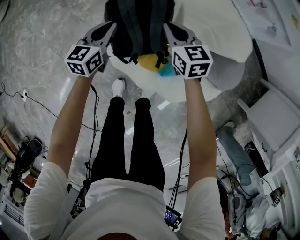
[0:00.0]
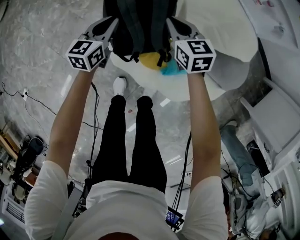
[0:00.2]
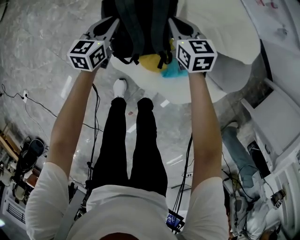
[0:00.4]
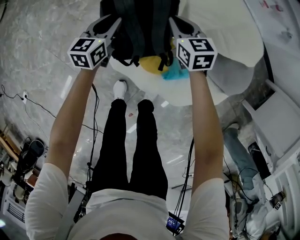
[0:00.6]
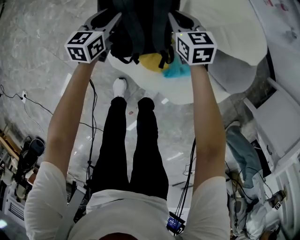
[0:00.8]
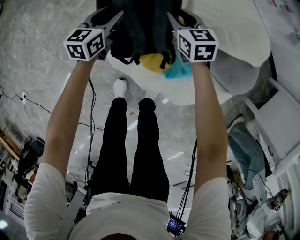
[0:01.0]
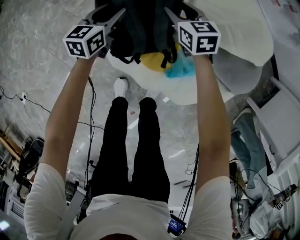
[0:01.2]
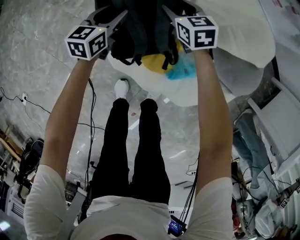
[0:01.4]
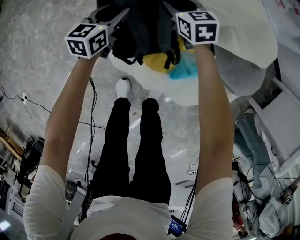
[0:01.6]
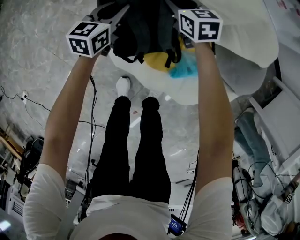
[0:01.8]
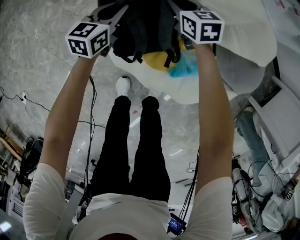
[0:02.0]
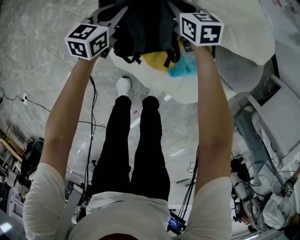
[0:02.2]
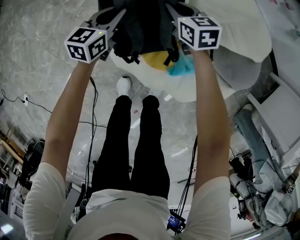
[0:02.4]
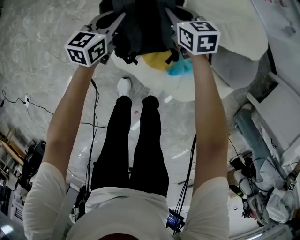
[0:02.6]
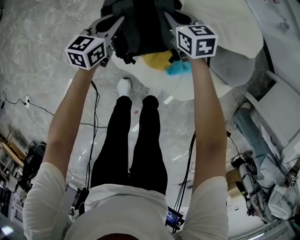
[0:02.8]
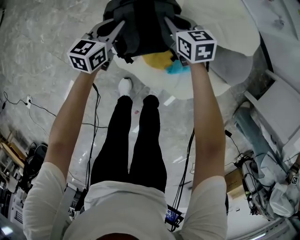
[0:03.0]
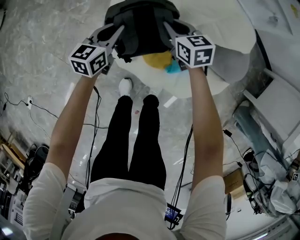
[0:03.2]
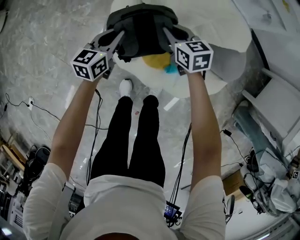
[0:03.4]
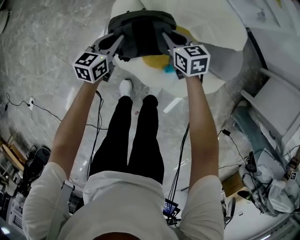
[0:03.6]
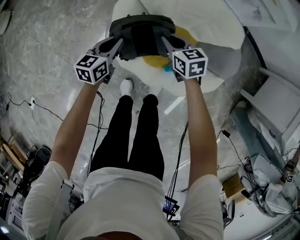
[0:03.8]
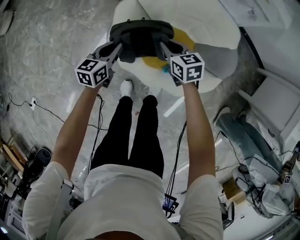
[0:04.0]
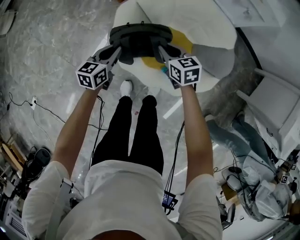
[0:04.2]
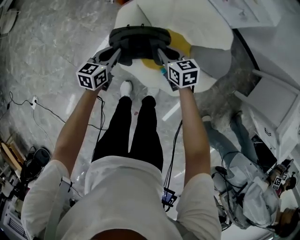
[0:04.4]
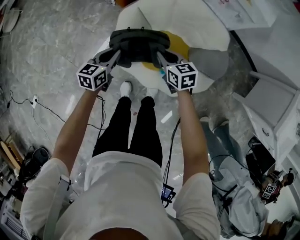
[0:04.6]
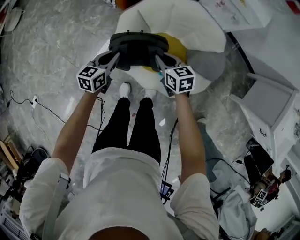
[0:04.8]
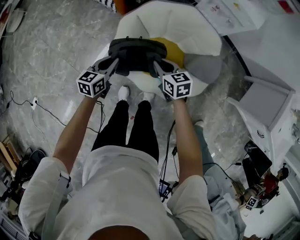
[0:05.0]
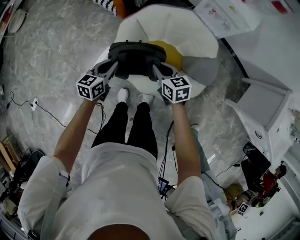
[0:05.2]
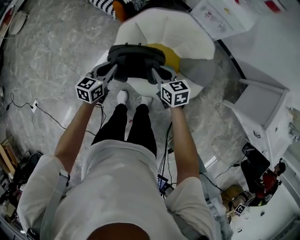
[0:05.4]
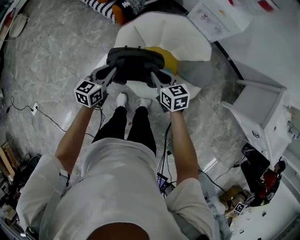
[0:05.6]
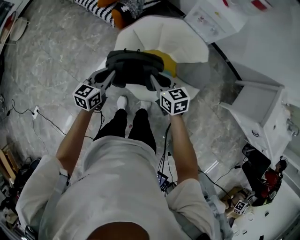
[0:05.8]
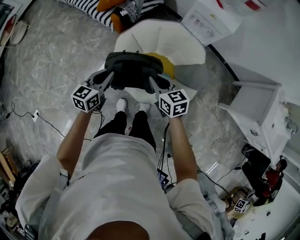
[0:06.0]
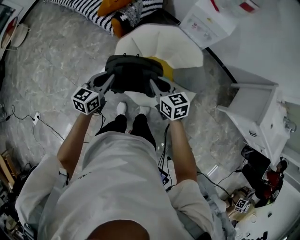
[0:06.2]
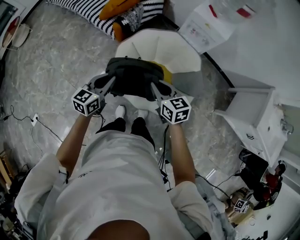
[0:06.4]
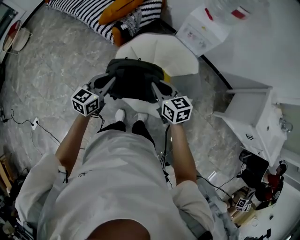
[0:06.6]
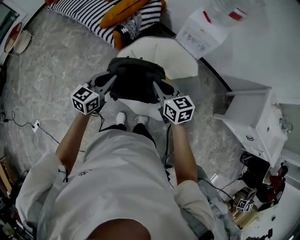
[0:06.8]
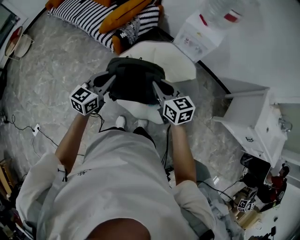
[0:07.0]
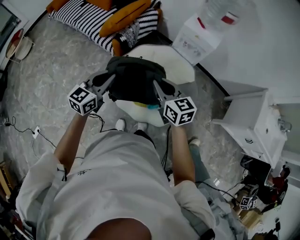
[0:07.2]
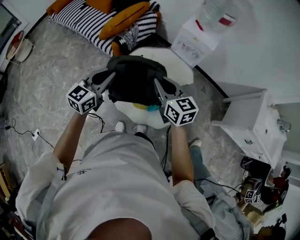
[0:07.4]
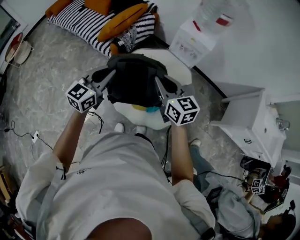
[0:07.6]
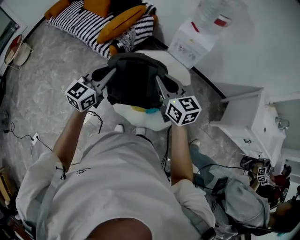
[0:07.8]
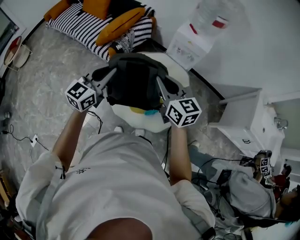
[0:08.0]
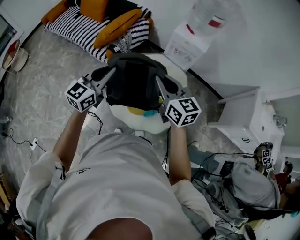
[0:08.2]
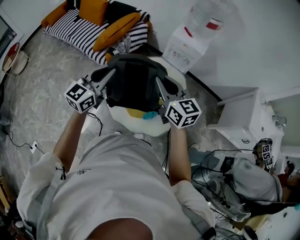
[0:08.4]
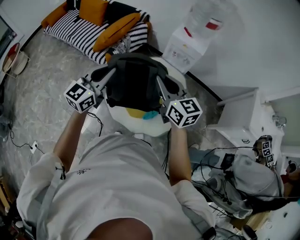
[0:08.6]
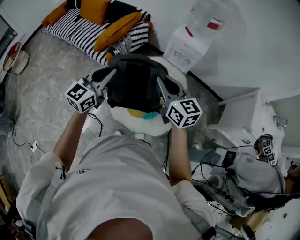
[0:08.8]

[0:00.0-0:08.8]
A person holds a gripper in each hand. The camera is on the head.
0:00.0 to 0:01.4: The grippers both shift downward and forward by about 15 cm. The right gripper opens up. The left gripper opens its fingers.
0:01.4 to 0:03.0: Both grippers travel together upward and backward, approximately 10 cm. The right gripper closes up, while the left gripper closes.
0:03.0 to 0:04.4: Both grippers move upward and backward, approximately 20 cm.
0:04.4 to 0:05.8: The right gripper heads upward and backward, covering some 20 cm; the left gripper shifts roughly 20 cm upward.
0:05.8 to 0:07.4: The two grippers go some 20 cm upward. The left gripper turns by some 20 degrees.
0:07.4 to 0:08.8: Both grippers move upward, roughly 5 cm.

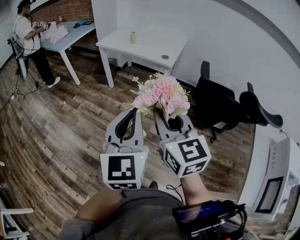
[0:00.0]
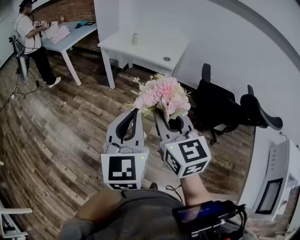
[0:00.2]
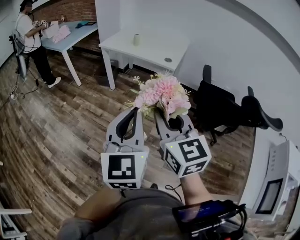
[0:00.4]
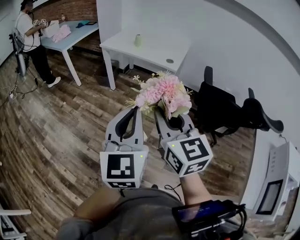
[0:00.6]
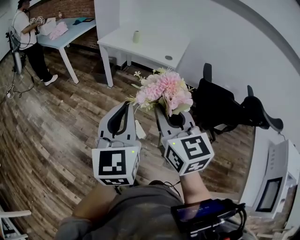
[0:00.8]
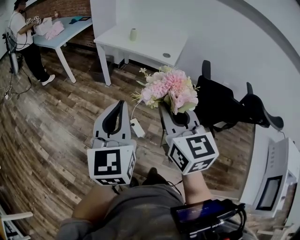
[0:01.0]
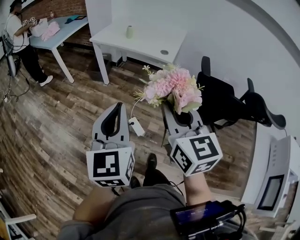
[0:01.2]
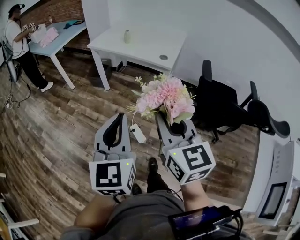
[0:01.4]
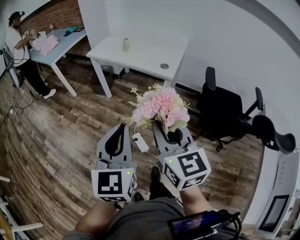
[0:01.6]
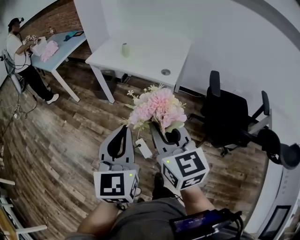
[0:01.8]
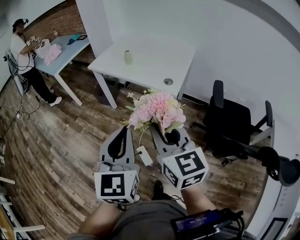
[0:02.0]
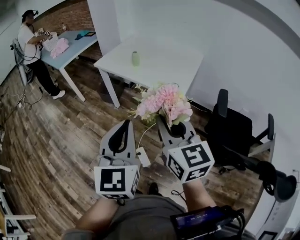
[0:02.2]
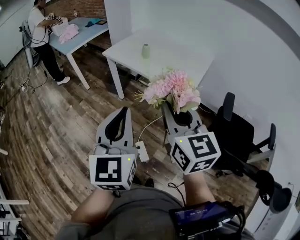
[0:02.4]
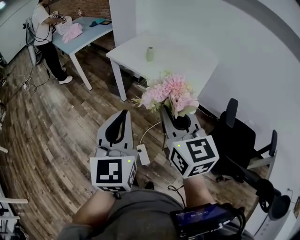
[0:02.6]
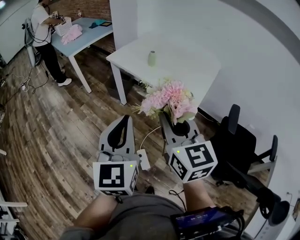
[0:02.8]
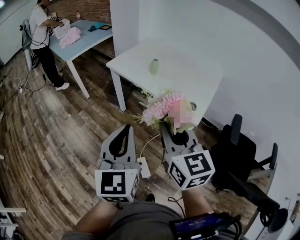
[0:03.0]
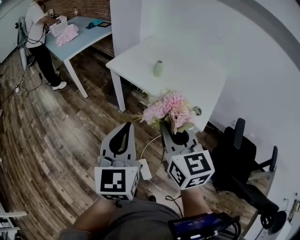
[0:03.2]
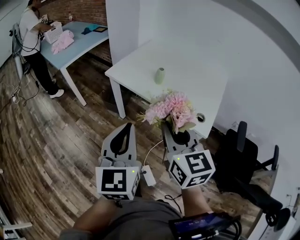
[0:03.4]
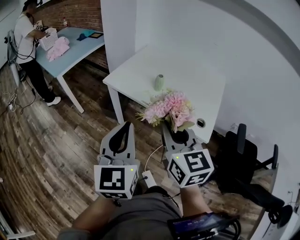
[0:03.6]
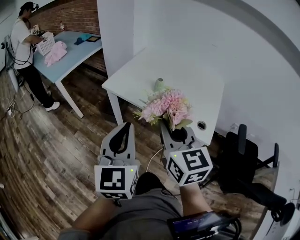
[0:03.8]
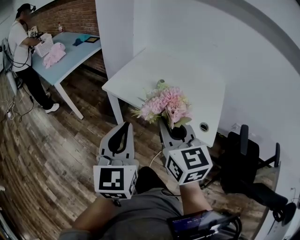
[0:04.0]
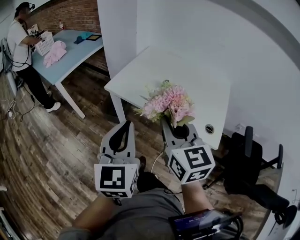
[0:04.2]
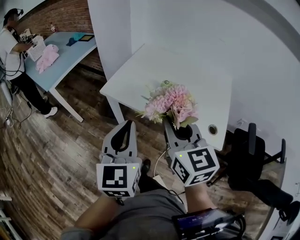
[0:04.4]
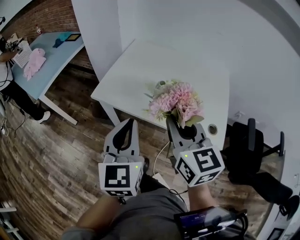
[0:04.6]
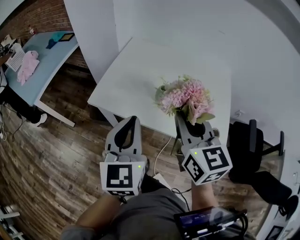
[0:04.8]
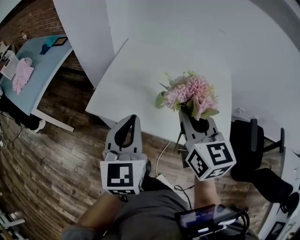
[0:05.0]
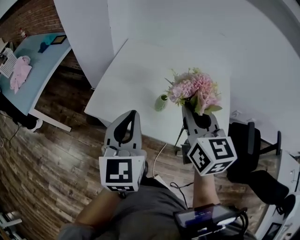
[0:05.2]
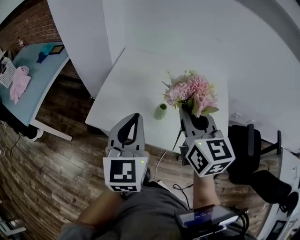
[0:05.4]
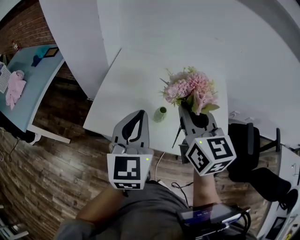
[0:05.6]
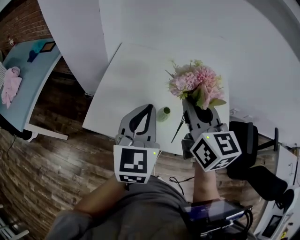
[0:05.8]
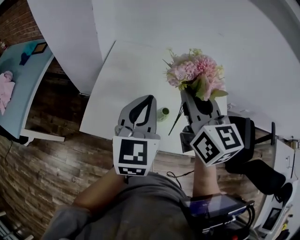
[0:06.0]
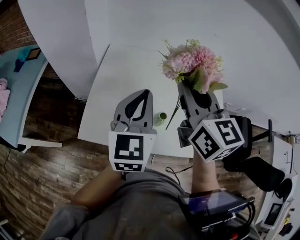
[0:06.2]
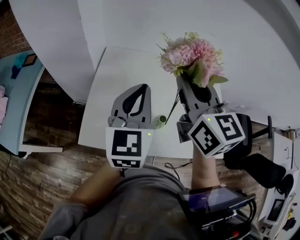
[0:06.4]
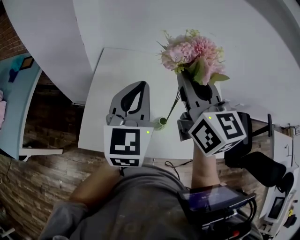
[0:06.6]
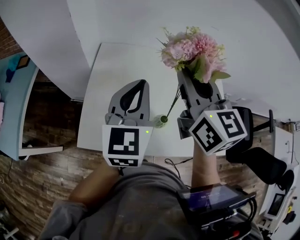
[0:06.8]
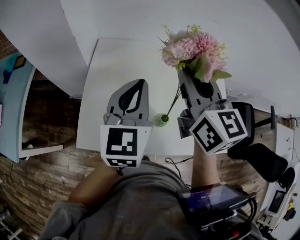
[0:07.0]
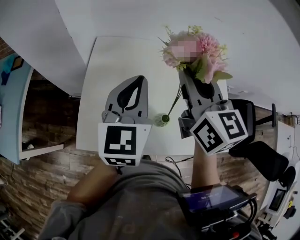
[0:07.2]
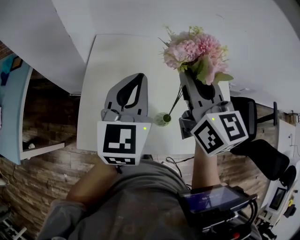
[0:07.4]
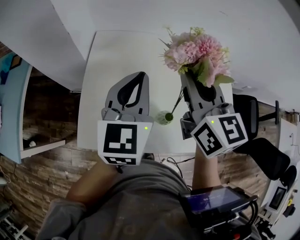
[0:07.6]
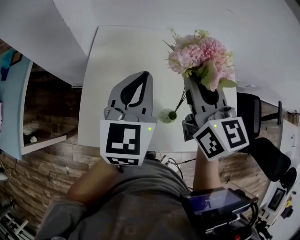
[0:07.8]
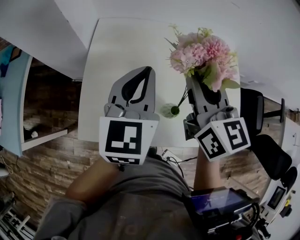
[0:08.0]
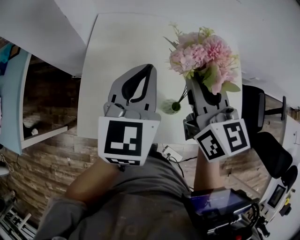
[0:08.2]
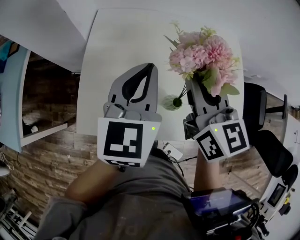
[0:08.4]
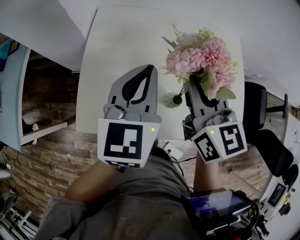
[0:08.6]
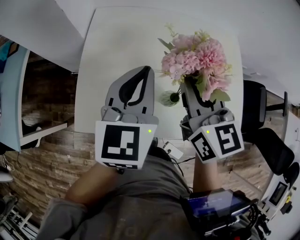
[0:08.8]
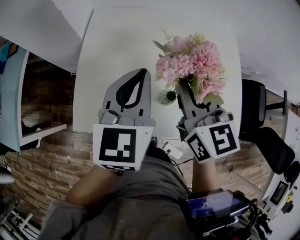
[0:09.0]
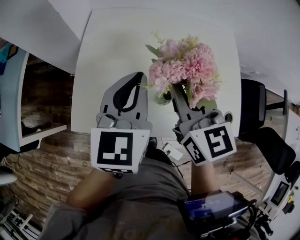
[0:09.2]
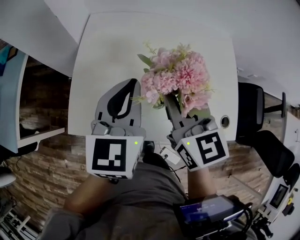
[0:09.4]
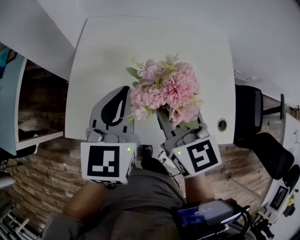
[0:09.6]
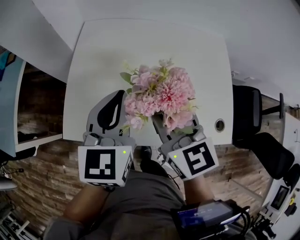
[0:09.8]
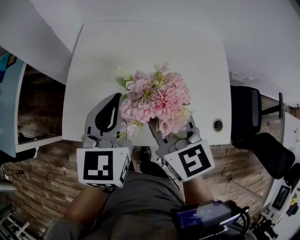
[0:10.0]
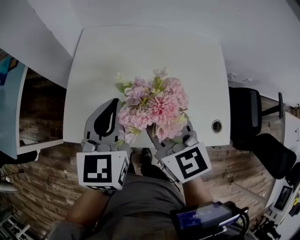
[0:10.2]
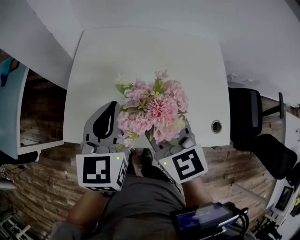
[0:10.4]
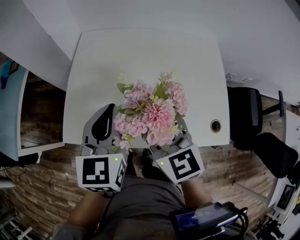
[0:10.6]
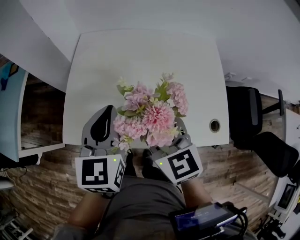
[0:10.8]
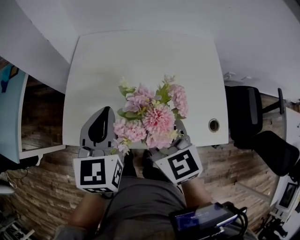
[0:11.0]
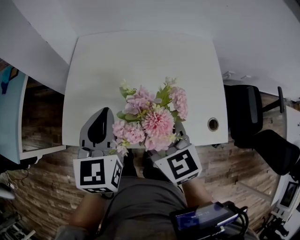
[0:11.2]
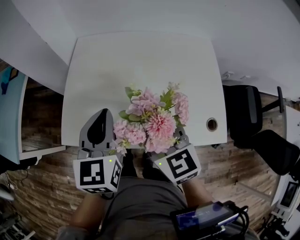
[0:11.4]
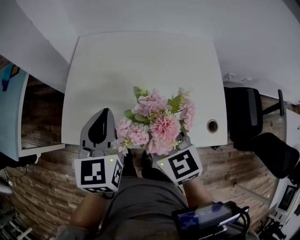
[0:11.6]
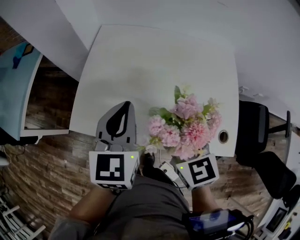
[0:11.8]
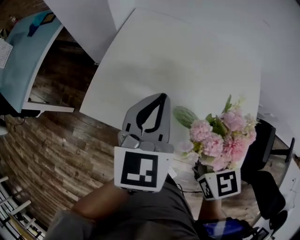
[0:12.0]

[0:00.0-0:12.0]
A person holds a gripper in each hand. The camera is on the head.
0:00.0 to 0:01.6: The left gripper goes roughly 15 cm forward and downward. Meanwhile the right gripper travels forward by roughly 15 cm.
0:01.6 to 0:03.0: Both grippers move forward, roughly 25 cm.
0:03.0 to 0:04.4: The grippers both shift forward by roughly 25 cm.
0:04.4 to 0:06.0: Both grippers travel together forward, some 30 cm. The left gripper turns by roughly 20 degrees.
0:07.6 to 0:09.0: The right gripper shifts by about 5 cm.
0:09.0 to 0:10.4: The left gripper ends up approximately 5 cm from where it was. Meanwhile the right gripper shifts some 5 cm backward, and opens.
0:10.4 to 0:12.0: The right gripper ends up some 5 cm from where it was.

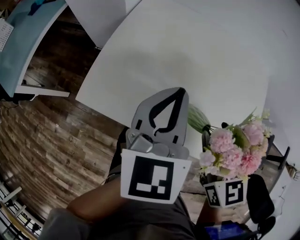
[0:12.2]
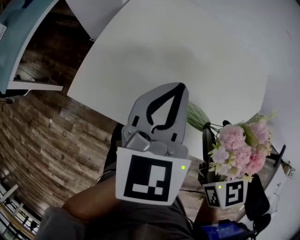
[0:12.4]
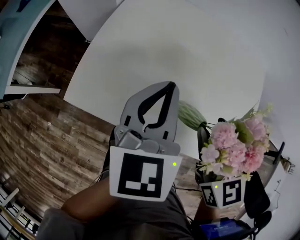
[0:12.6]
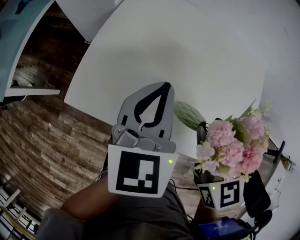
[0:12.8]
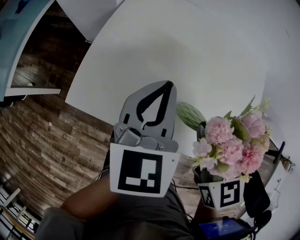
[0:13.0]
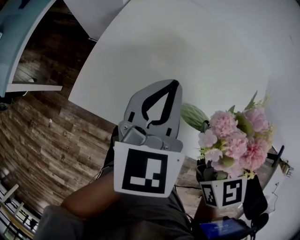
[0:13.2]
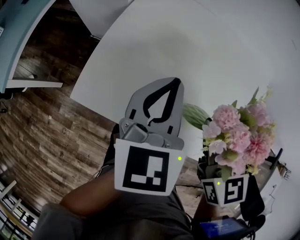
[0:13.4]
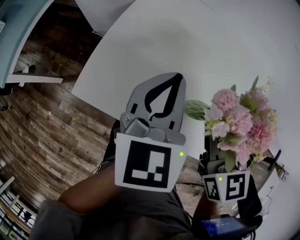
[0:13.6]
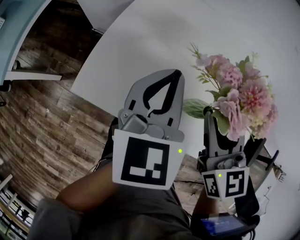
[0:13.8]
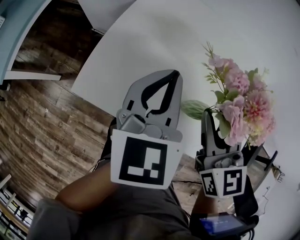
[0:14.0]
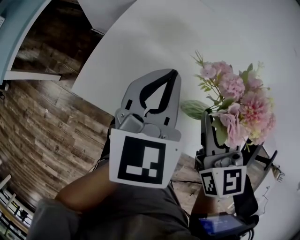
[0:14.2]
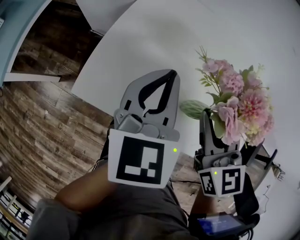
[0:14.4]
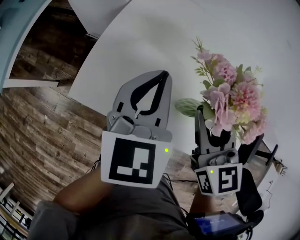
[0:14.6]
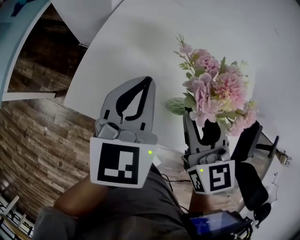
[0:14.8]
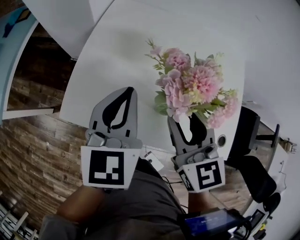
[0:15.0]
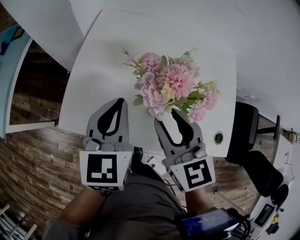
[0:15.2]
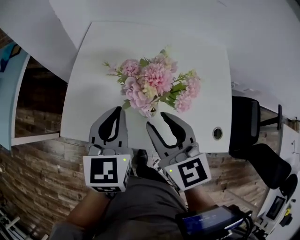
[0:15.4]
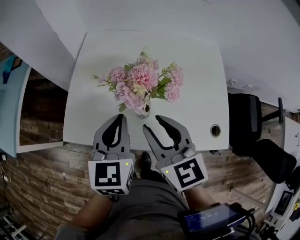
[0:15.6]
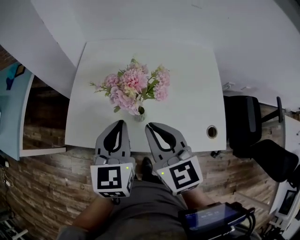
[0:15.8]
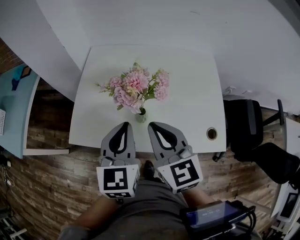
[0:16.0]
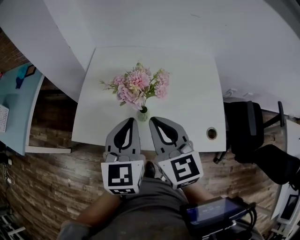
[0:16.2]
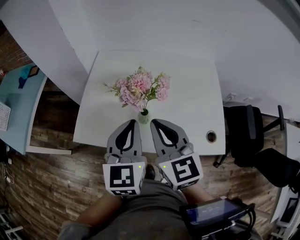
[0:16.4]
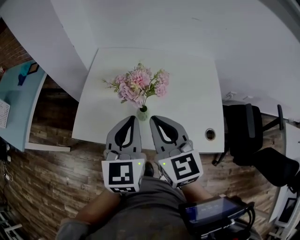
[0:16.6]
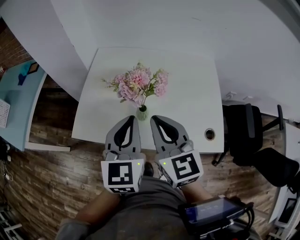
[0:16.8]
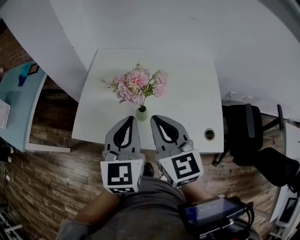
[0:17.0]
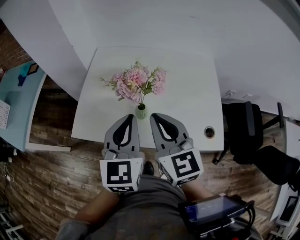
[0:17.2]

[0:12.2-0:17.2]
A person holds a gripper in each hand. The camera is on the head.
0:12.2 to 0:13.8: The right gripper heads forward, covering roughly 5 cm, while the left gripper shifts by approximately 5 cm.
0:13.8 to 0:15.6: The grippers both shift backward by approximately 5 cm.
0:15.6 to 0:17.2: Both grippers travel together upward, some 5 cm. The right gripper closes.
